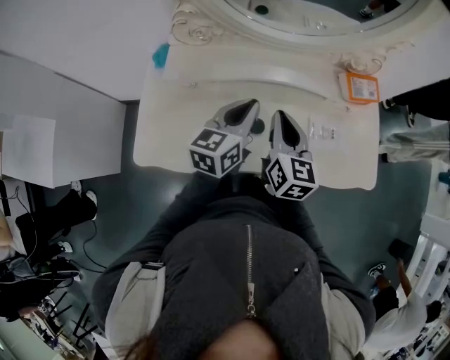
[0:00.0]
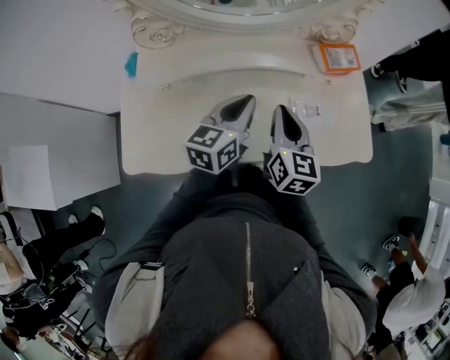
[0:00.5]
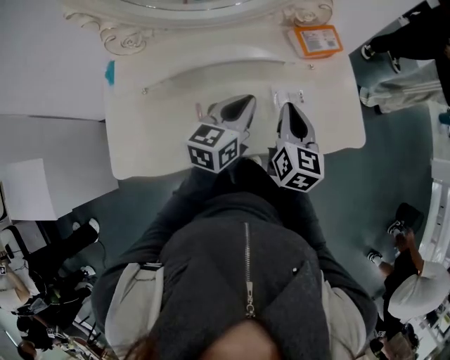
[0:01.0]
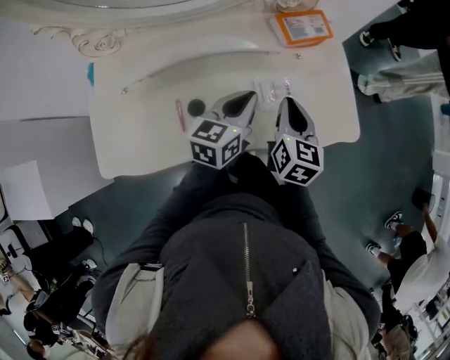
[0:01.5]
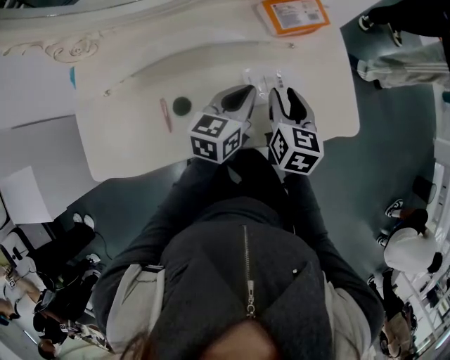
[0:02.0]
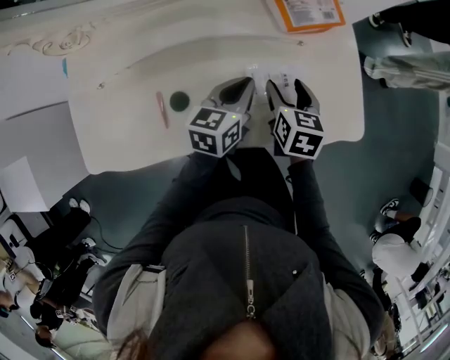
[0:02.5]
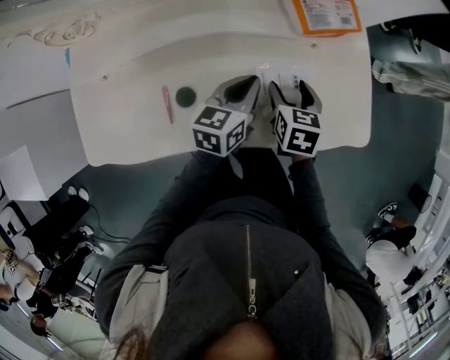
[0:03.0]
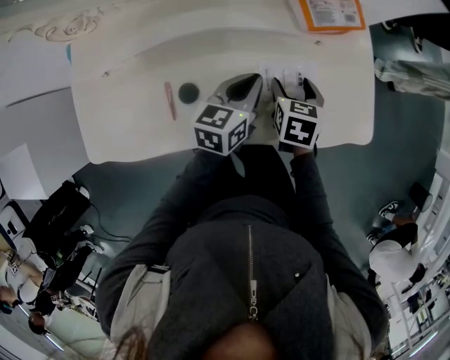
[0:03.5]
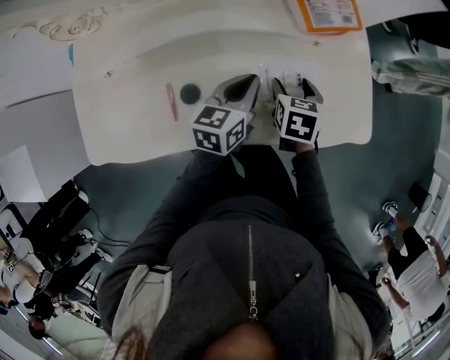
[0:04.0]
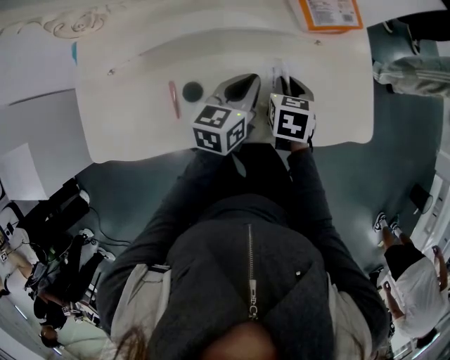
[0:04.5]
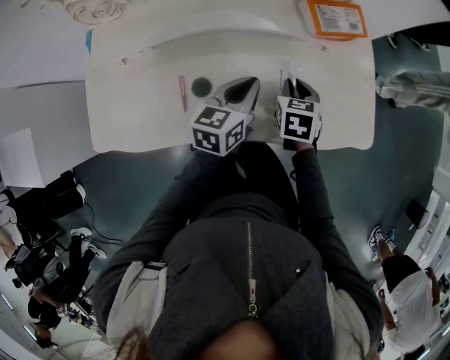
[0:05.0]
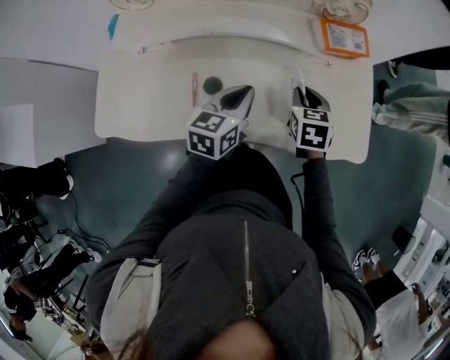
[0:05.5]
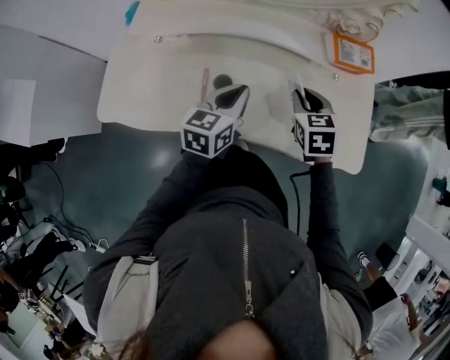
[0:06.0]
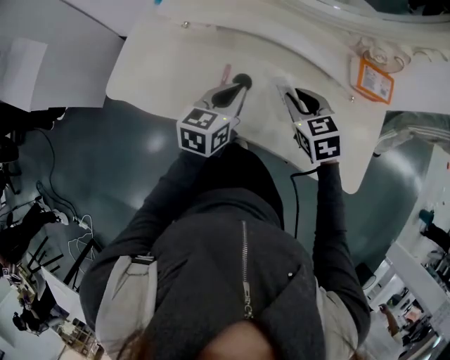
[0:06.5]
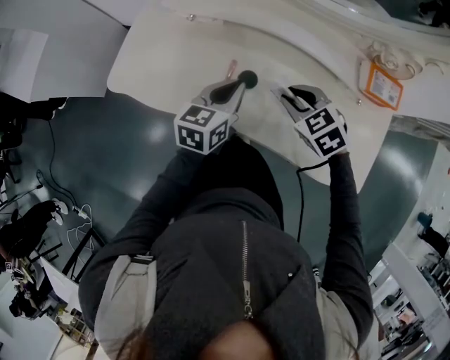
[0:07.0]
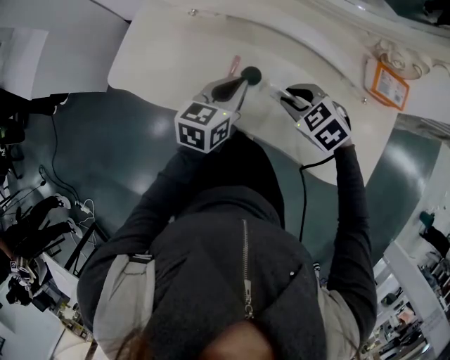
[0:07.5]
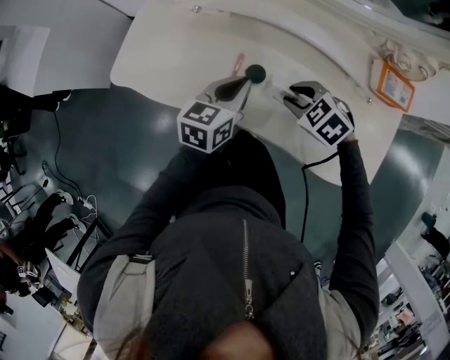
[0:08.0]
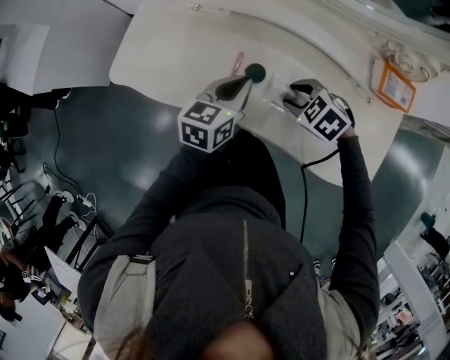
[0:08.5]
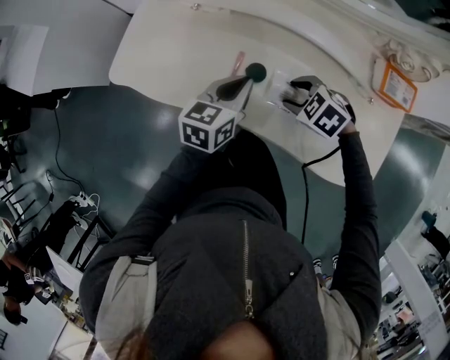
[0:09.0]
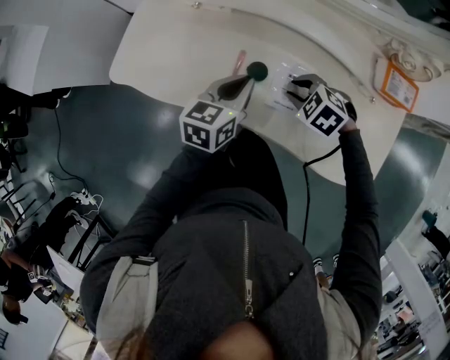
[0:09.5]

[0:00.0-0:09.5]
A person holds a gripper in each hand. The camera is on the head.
0.0 to 2.0 s: The grippers both shift to the right and downward by approximately 25 cm. The right gripper changes its angle by roughly 20 degrees, and opens its fingers.
2.0 to 4.0 s: The right gripper is displaced downward by about 10 cm, swivels roughly 20 degrees, and opens up.
4.0 to 5.5 s: The left gripper travels backward by approximately 5 cm; the right gripper changes place by roughly 5 cm, and closes.
5.5 to 7.5 s: The right gripper changes place by approximately 15 cm, and swivels roughly 70 degrees. The left gripper moves some 10 cm.
7.5 to 9.5 s: The grippers make only small movements.

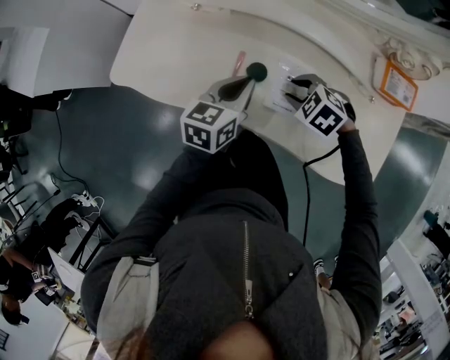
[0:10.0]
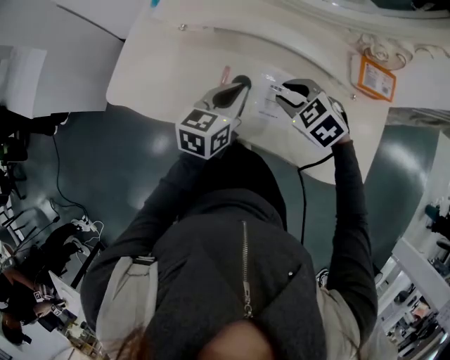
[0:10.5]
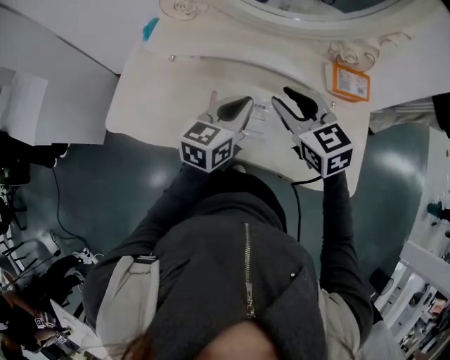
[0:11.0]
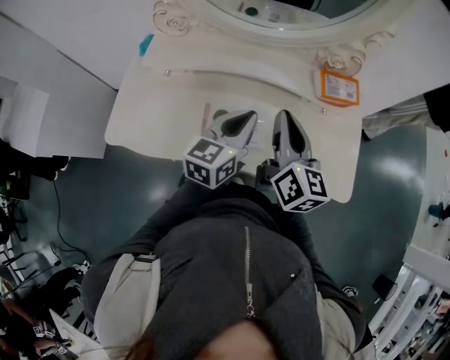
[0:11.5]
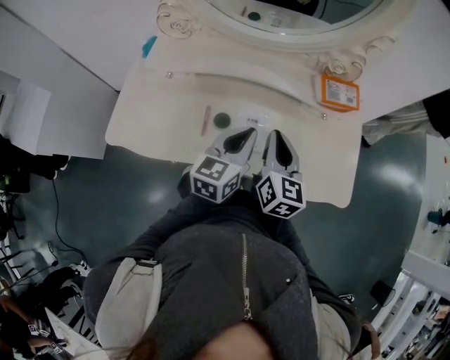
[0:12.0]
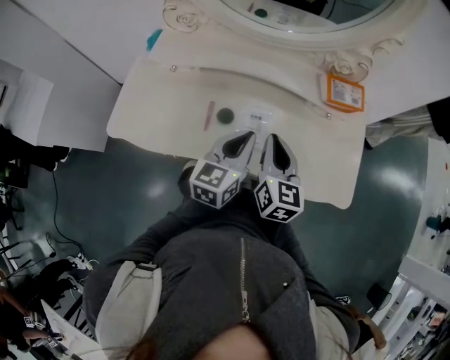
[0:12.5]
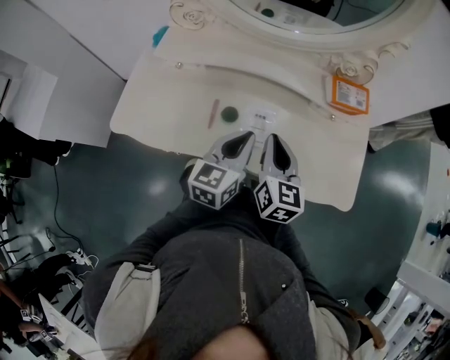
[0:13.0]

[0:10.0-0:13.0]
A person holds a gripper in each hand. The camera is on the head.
10.0 to 11.5 s: The left gripper is displaced upward by roughly 10 cm. Meanwhile the right gripper shifts some 25 cm upward, tilts its fingers some 60 degrees upward, and closes its fingers.
11.5 to 13.0 s: The left gripper heads backward, covering some 5 cm. The right gripper goes approximately 10 cm downward.

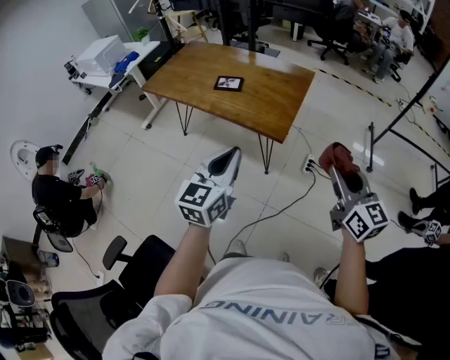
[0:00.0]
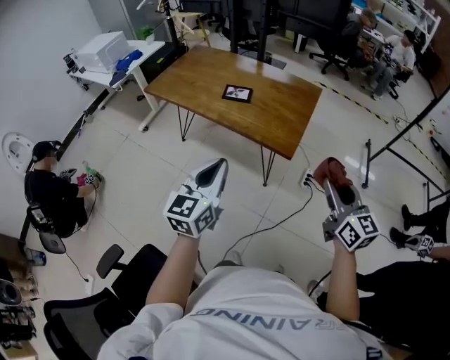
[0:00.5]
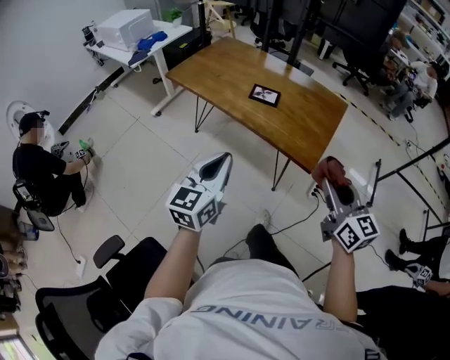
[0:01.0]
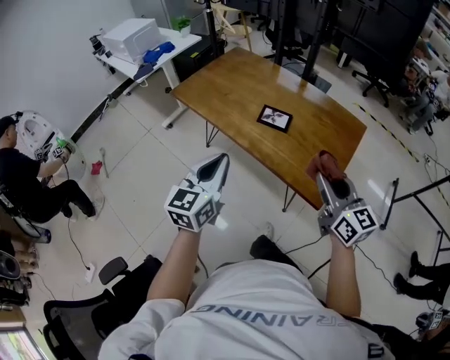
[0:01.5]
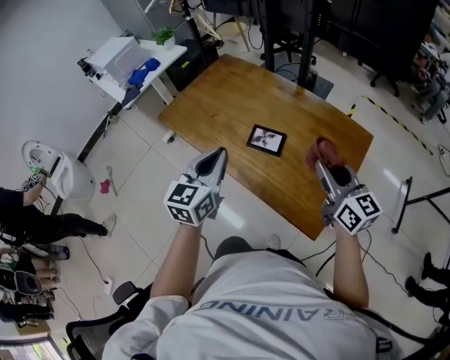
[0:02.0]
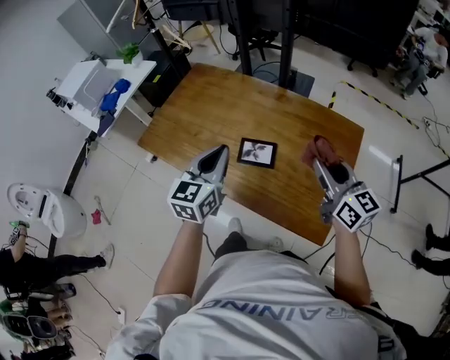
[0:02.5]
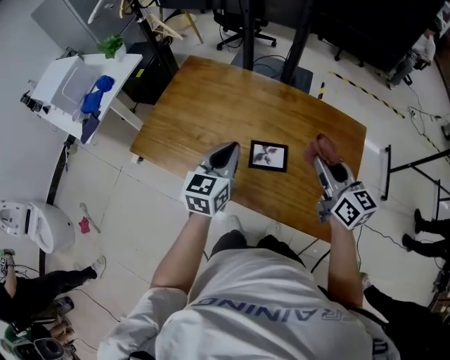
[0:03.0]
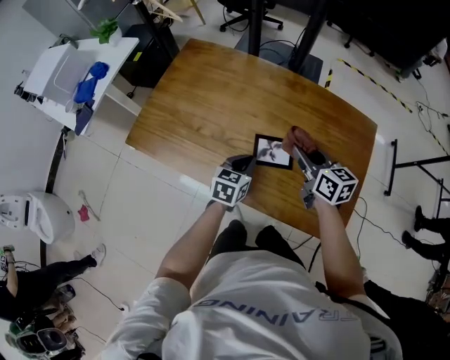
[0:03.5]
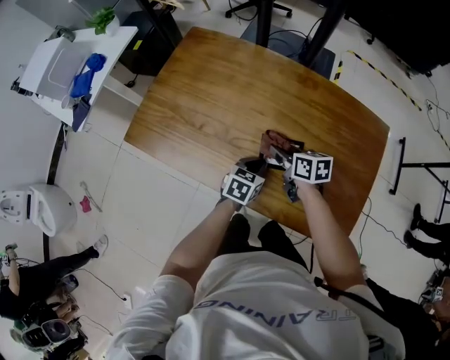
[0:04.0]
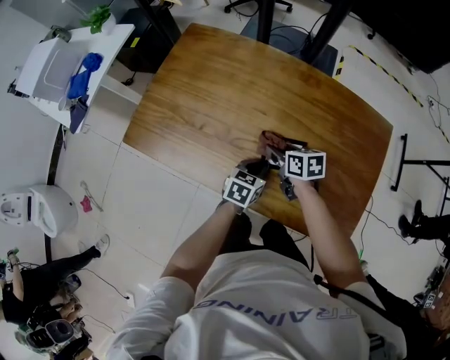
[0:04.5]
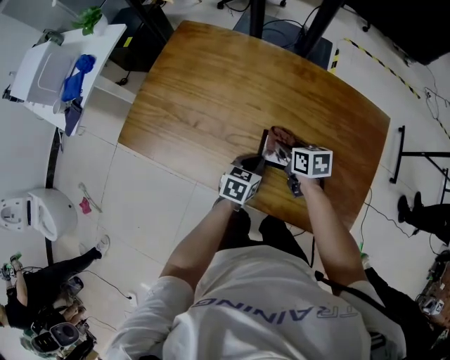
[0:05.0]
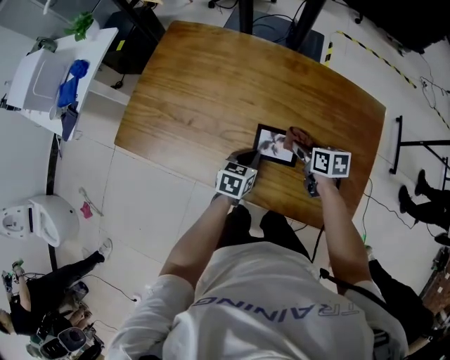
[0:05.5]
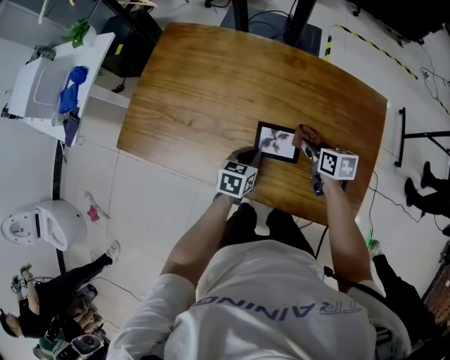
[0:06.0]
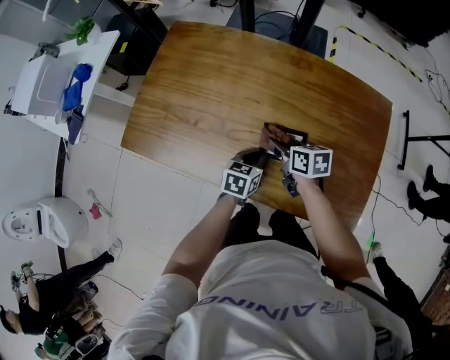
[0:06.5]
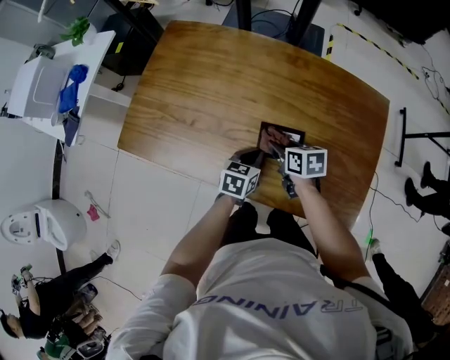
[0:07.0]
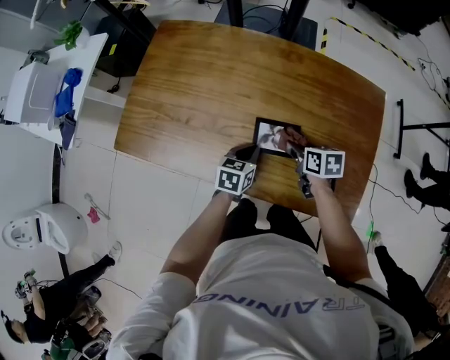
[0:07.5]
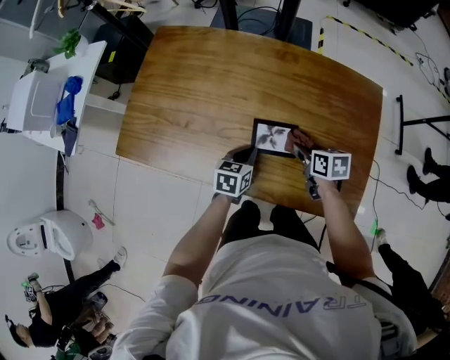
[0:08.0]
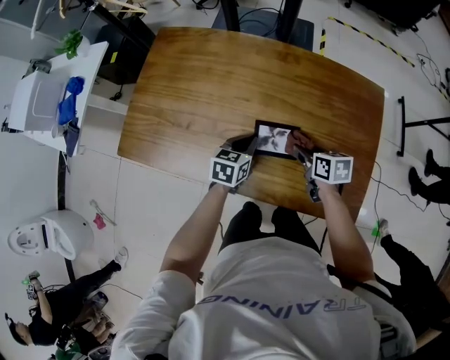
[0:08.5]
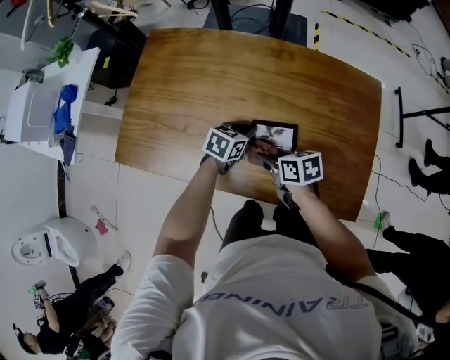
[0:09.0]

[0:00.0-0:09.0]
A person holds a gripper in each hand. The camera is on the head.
0.0 to 2.0 s: The pair of grippers is taken forward, approximately 50 cm.
2.0 to 4.5 s: The left gripper goes roughly 35 cm downward and forward, and turns by some 50 degrees; the right gripper is displaced downward, to the left and forward by about 40 cm, and tilts its fingers roughly 40 degrees downward.
4.5 to 7.0 s: The right gripper goes to the right and returns, some 15 cm each way.
7.0 to 9.0 s: The left gripper goes about 5 cm forward; the right gripper moves approximately 10 cm to the right and comes back.

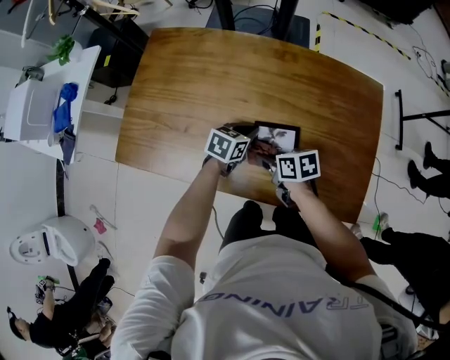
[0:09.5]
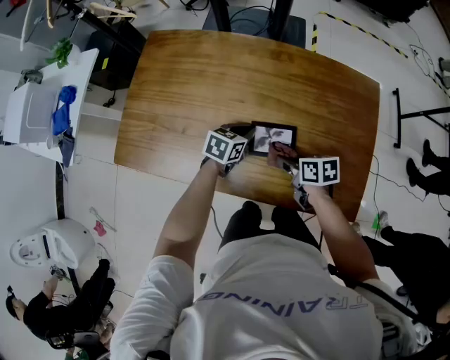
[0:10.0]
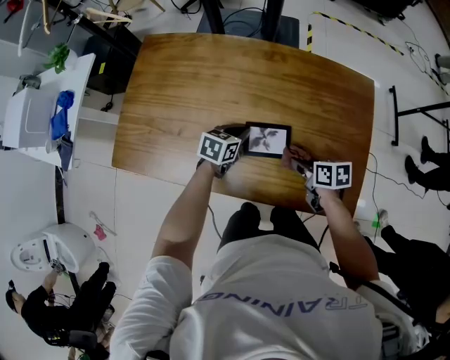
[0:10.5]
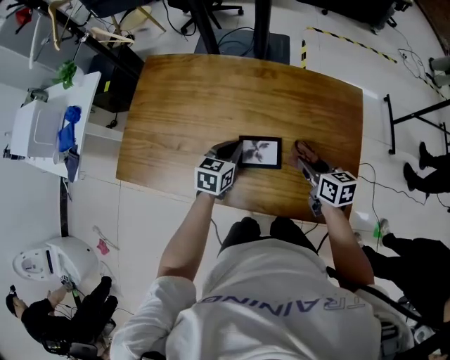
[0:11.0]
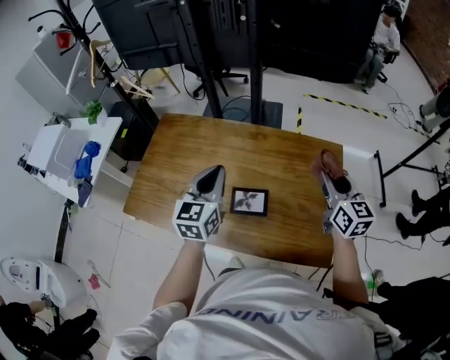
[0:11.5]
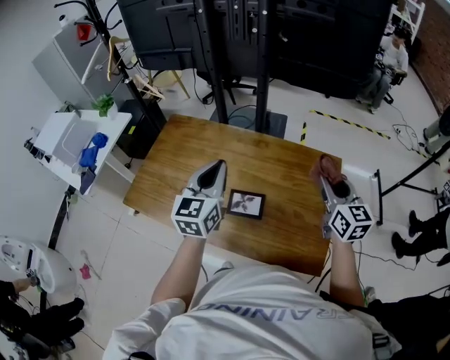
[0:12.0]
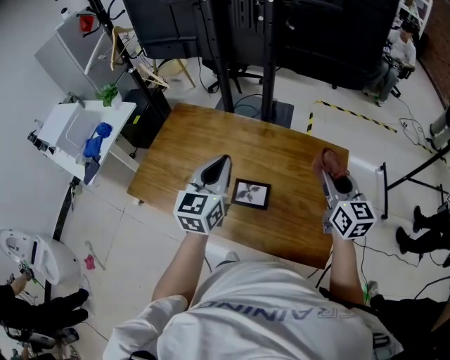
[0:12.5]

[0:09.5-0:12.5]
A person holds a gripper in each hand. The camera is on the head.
9.5 to 11.0 s: The right gripper moves to the right and upward, about 20 cm, and swivels roughly 30 degrees. The left gripper goes about 5 cm upward.
11.0 to 12.5 s: Both grippers move upward, roughly 25 cm. The left gripper turns by about 30 degrees; the right gripper turns by approximately 30 degrees.

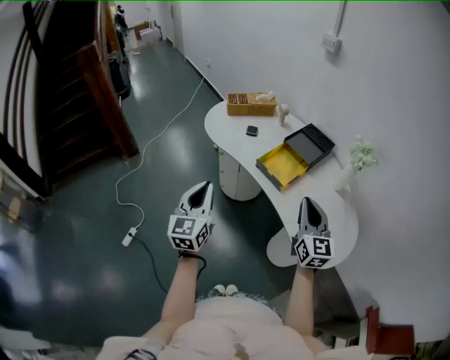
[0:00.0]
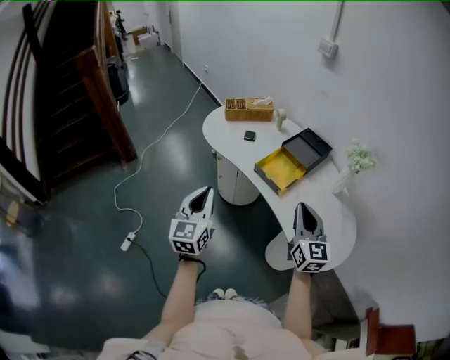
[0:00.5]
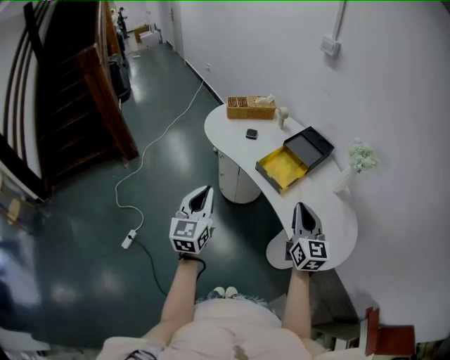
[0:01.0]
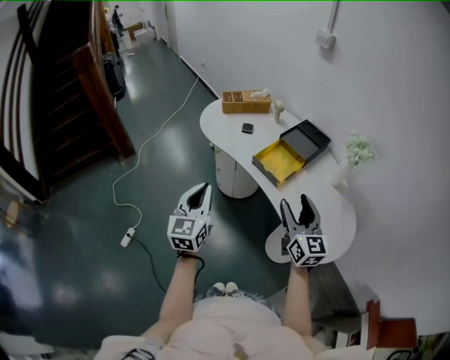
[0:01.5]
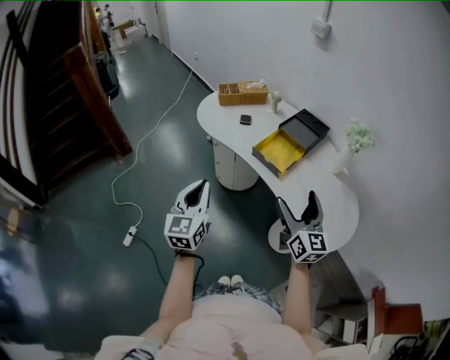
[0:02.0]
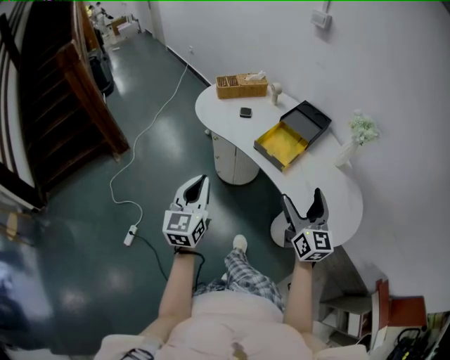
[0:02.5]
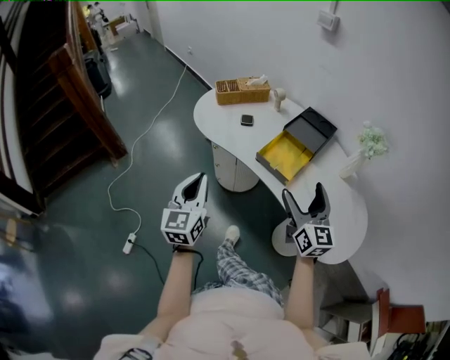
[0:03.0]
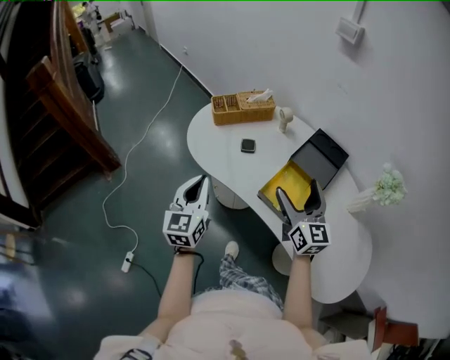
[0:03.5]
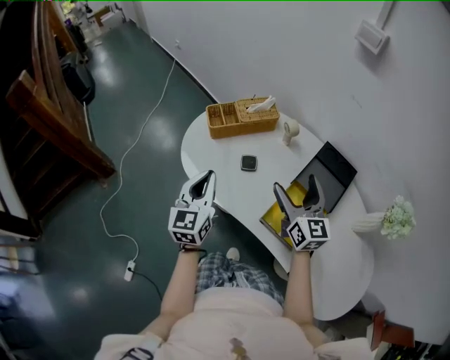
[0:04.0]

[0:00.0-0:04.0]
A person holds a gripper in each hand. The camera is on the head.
0.0 to 2.0 s: The right gripper moves some 5 cm, and opens.
2.0 to 4.0 s: The pair of grippers is taken forward, approximately 50 cm.
